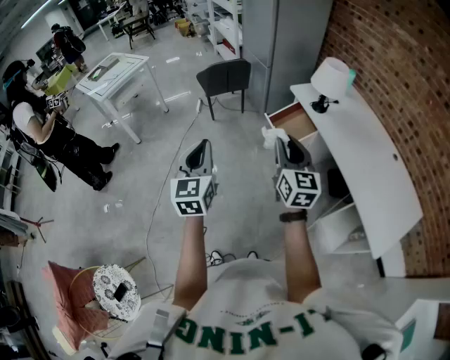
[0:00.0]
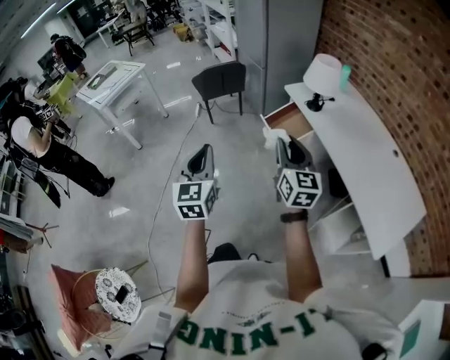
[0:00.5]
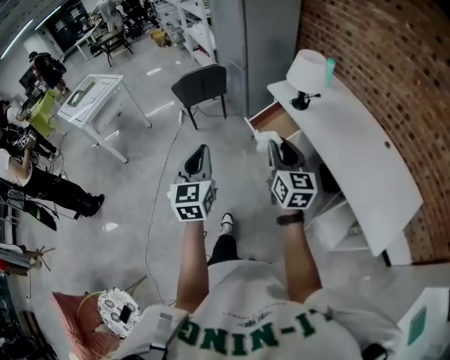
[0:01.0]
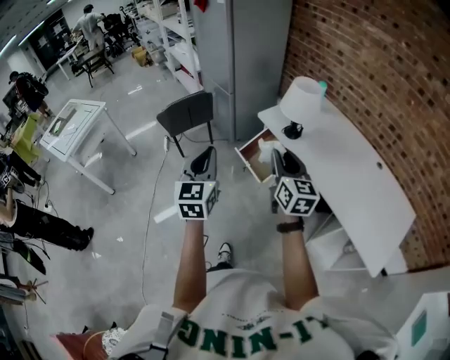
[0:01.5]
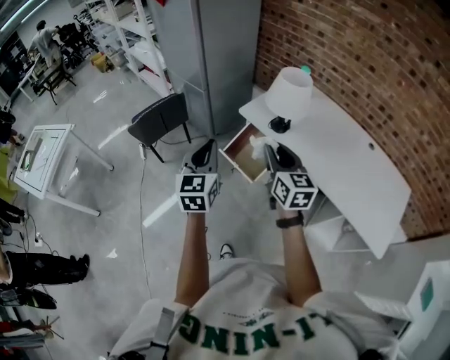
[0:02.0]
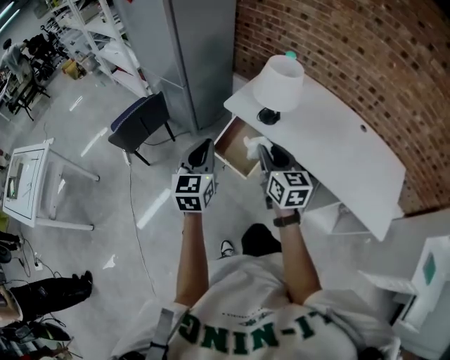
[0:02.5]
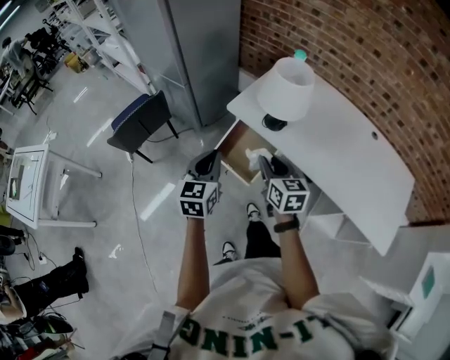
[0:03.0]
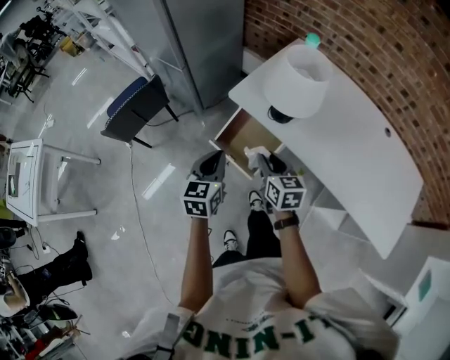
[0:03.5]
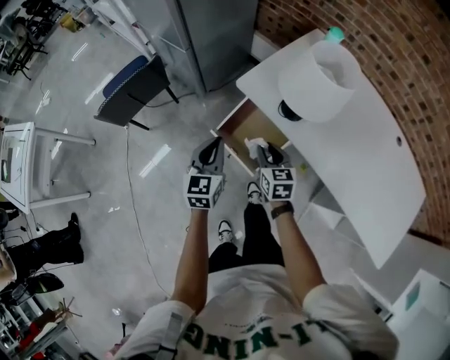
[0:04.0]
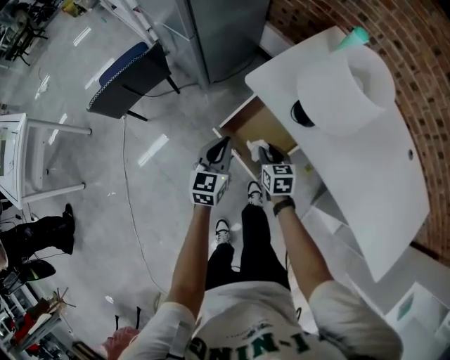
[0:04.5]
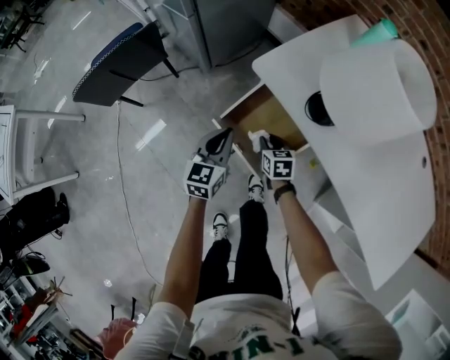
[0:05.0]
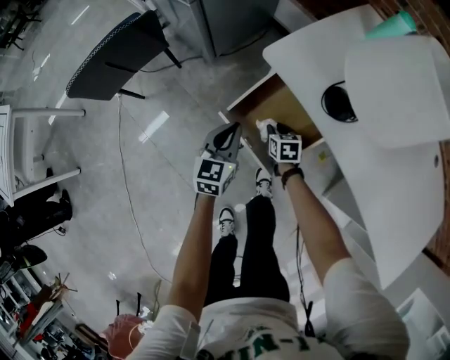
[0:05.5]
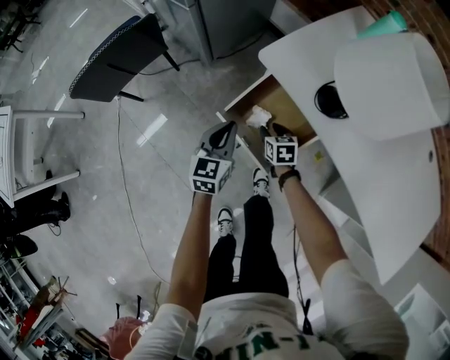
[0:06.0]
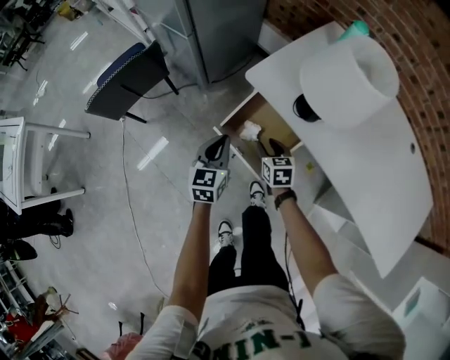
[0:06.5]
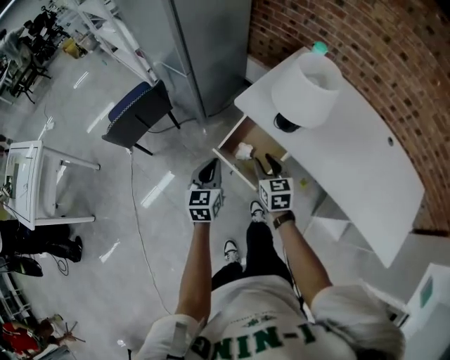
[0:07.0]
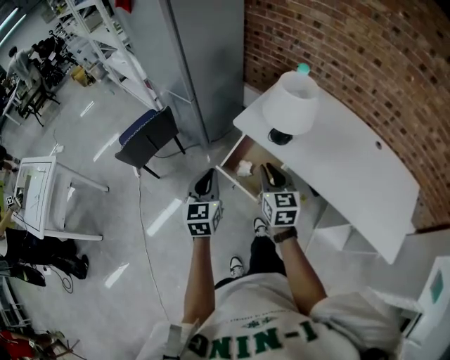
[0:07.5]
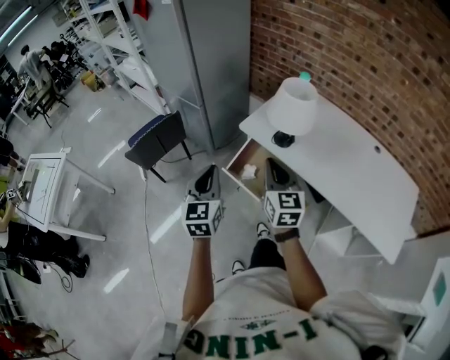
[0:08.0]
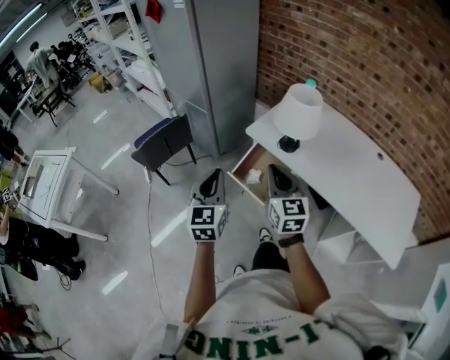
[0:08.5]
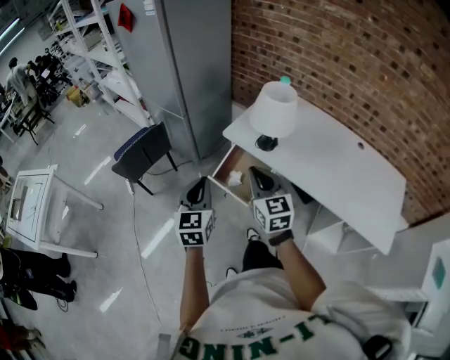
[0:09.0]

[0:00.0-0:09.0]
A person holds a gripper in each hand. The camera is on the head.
0:00.0 to 0:02.0: Both grippers travel together forward, roughly 35 cm. The left gripper swivels roughly 30 degrees.
0:02.0 to 0:04.5: The two grippers go roughly 40 cm downward and forward. The right gripper tips its fingers downward by approximately 30 degrees.
0:04.5 to 0:07.0: The left gripper shifts about 15 cm upward and backward. Meanwhile the right gripper is displaced upward by roughly 20 cm.
0:07.0 to 0:09.0: The two grippers go approximately 20 cm upward and backward. The right gripper swivels roughly 20 degrees, and closes its fingers.

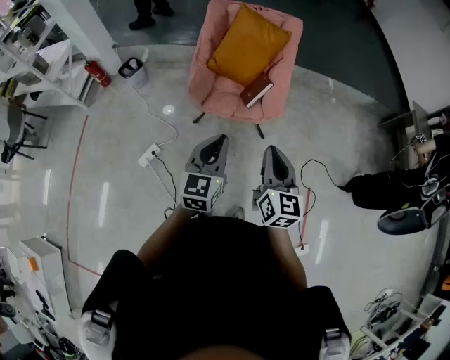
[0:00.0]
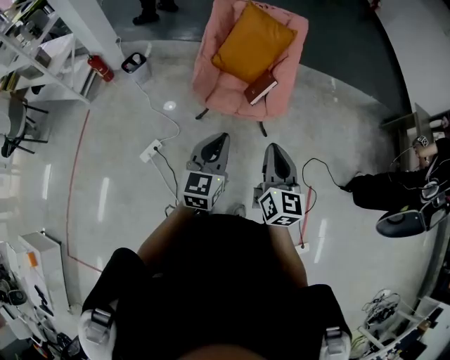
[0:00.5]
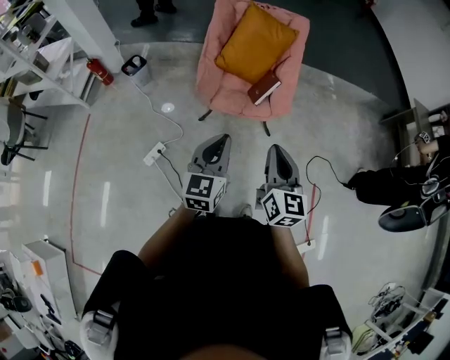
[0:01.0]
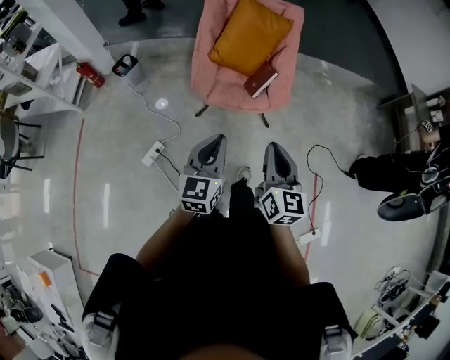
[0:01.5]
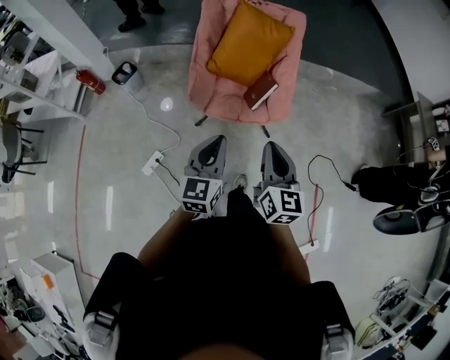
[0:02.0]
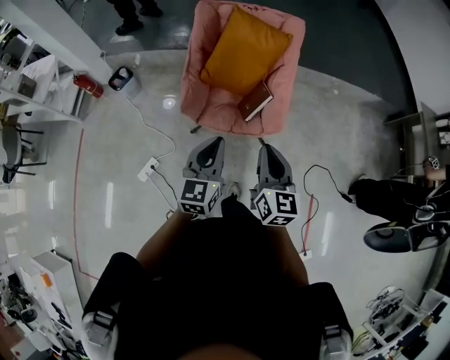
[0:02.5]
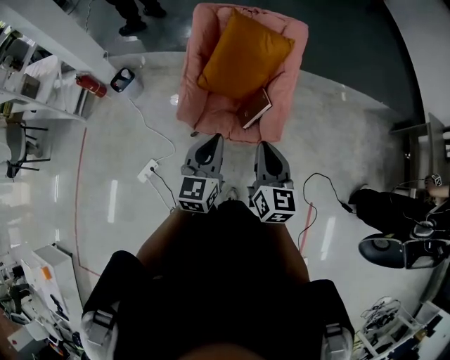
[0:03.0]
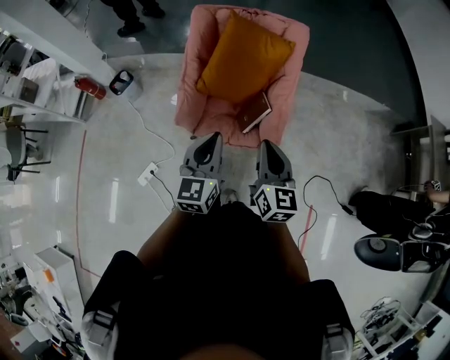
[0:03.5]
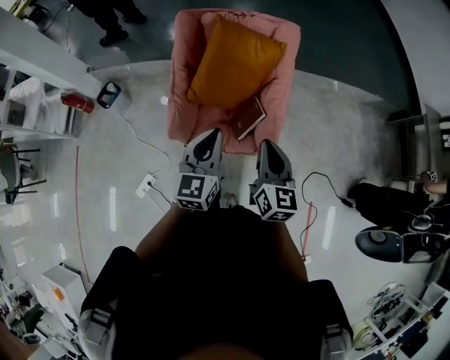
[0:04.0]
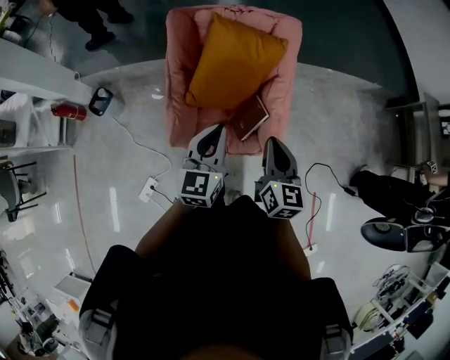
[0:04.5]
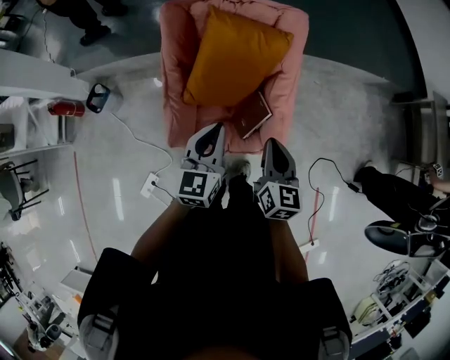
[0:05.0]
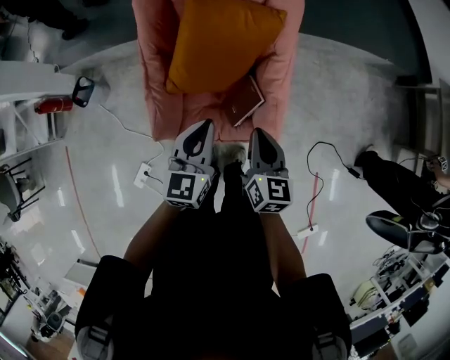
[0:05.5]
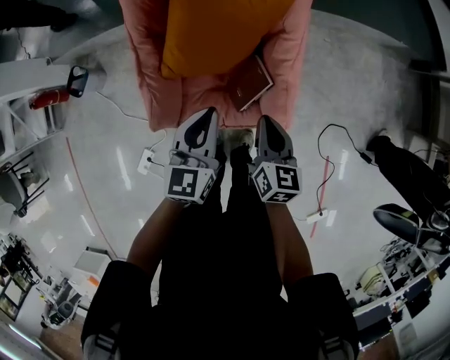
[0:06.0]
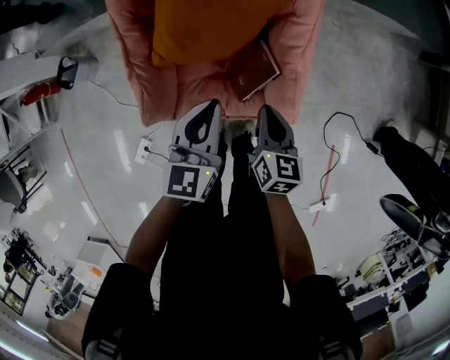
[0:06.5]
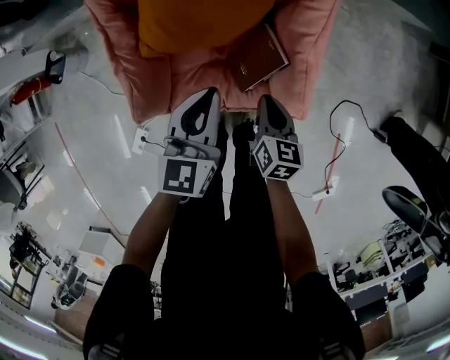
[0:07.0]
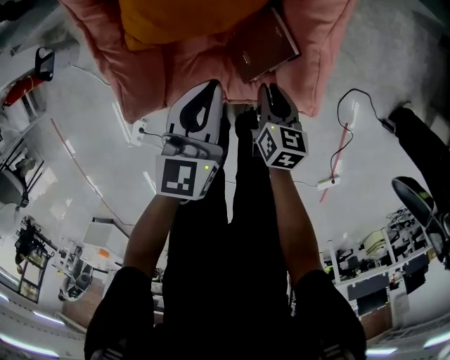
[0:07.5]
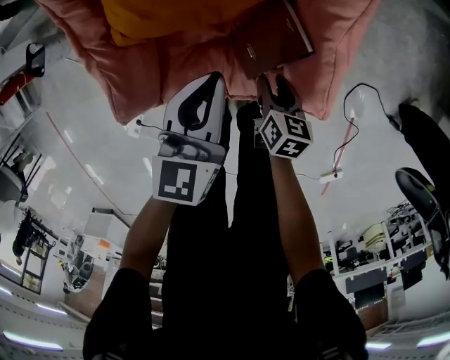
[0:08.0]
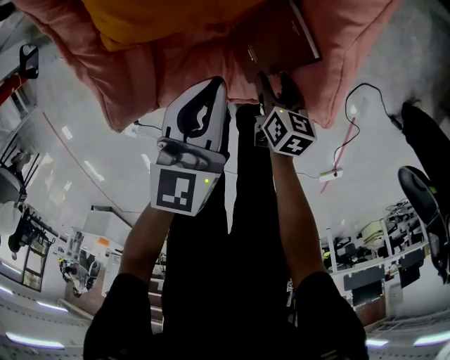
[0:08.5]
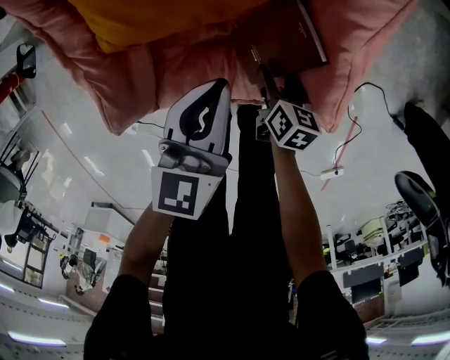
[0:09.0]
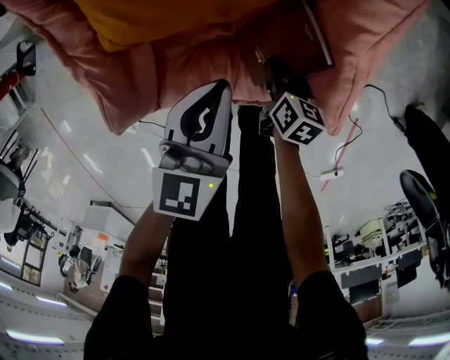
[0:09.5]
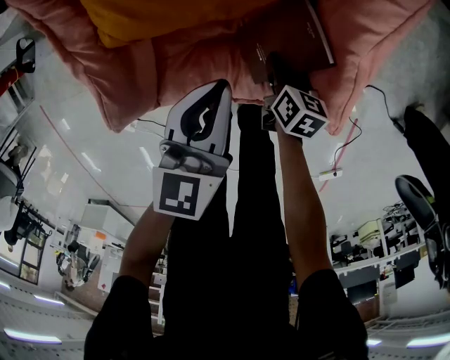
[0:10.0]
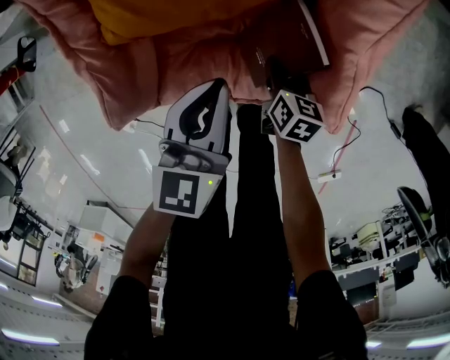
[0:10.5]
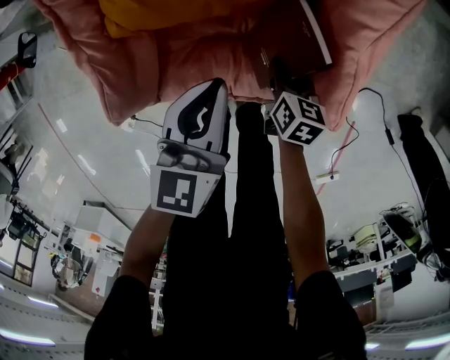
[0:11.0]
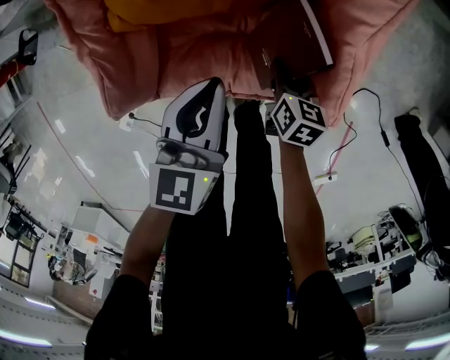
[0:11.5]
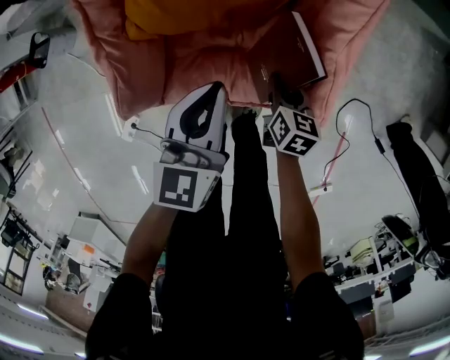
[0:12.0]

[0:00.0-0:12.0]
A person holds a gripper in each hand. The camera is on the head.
0:00.0 to 0:02.0: The grippers both shift forward and to the left by approximately 10 cm.
0:02.0 to 0:04.0: The two grippers go about 30 cm forward.
0:04.0 to 0:06.0: Both grippers travel together downward and forward, roughly 25 cm.
0:06.0 to 0:08.0: The left gripper heads downward, covering some 20 cm, while the right gripper heads downward, covering about 35 cm, rotates approximately 20 degrees, and opens.
0:08.0 to 0:10.0: Both grippers move downward, some 5 cm. The right gripper opens, then closes once more.
0:10.0 to 0:12.0: The grippers both shift upward by about 10 cm.

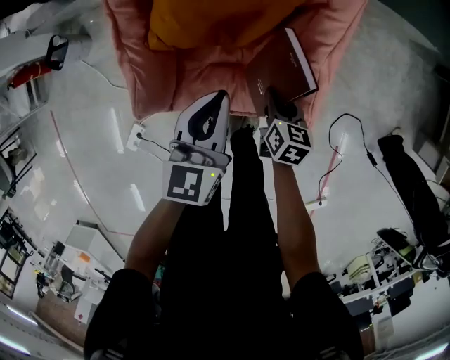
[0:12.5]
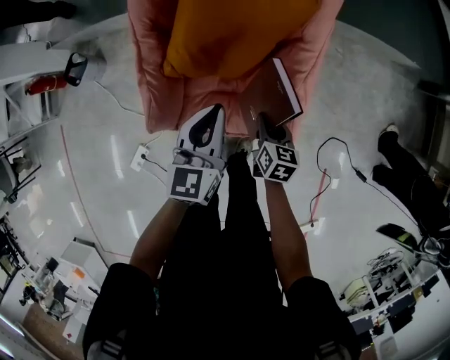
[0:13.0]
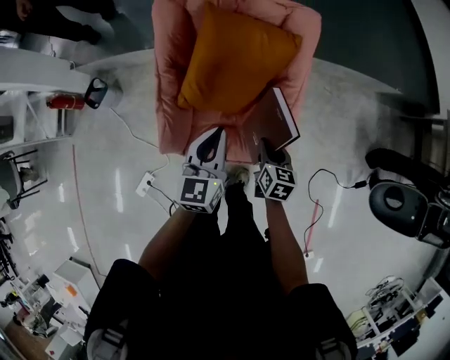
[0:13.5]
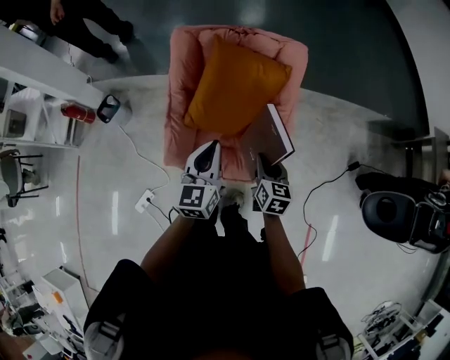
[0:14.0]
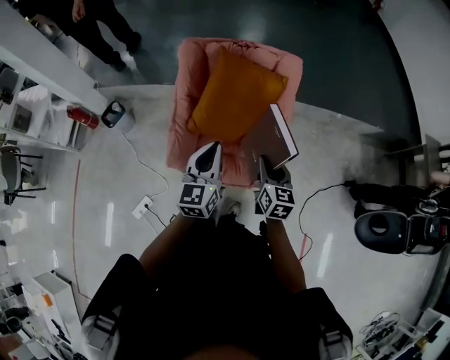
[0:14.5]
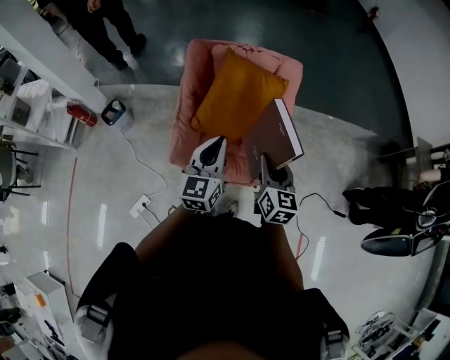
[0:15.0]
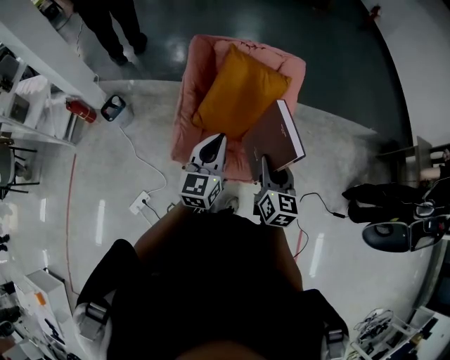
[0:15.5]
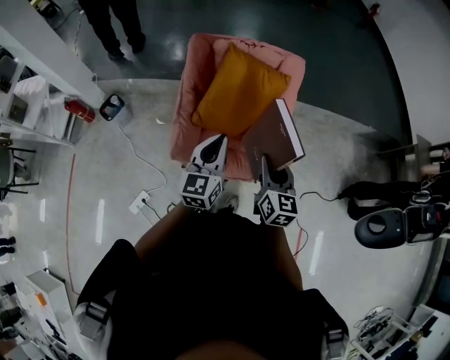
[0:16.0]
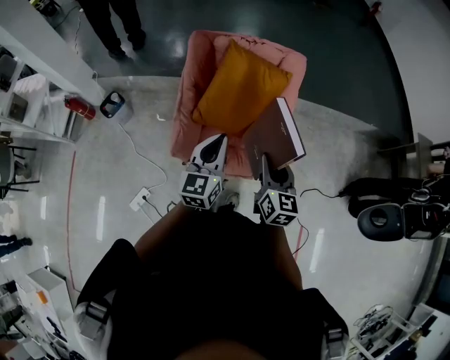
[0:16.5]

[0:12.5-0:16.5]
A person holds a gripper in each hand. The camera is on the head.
0:12.5 to 0:14.5: Both grippers travel together upward, approximately 35 cm. The right gripper rotates roughly 30 degrees.
0:14.5 to 0:16.5: The right gripper heads upward and backward, covering approximately 10 cm.

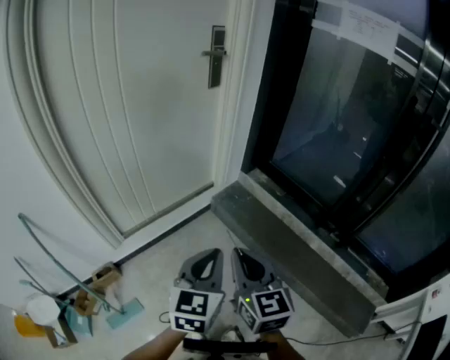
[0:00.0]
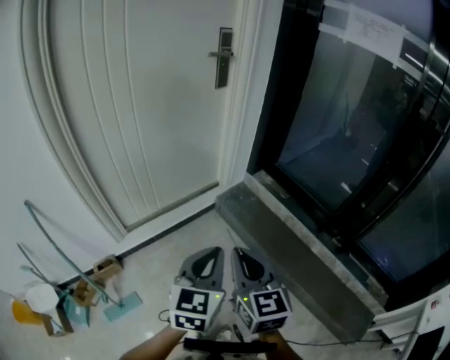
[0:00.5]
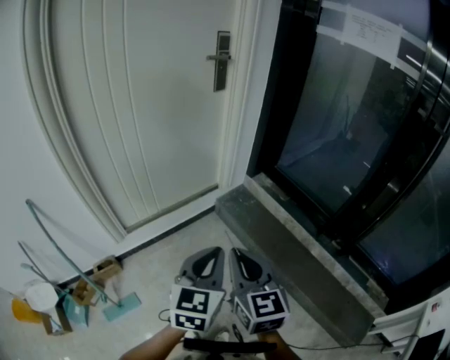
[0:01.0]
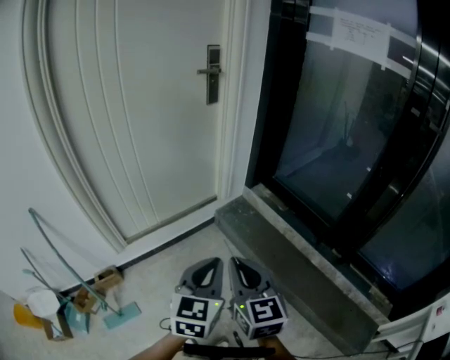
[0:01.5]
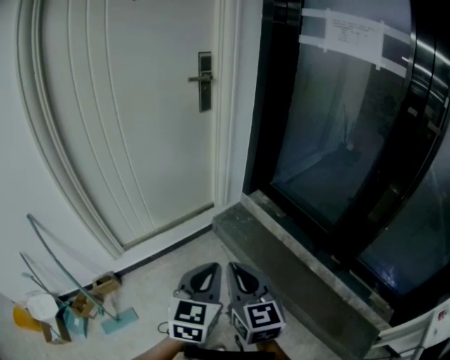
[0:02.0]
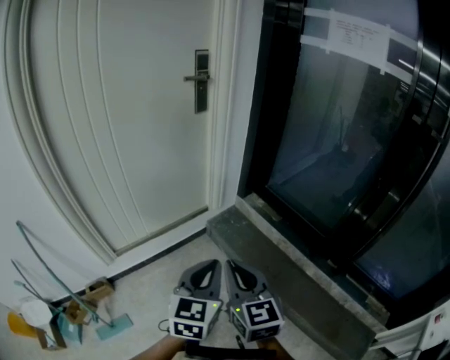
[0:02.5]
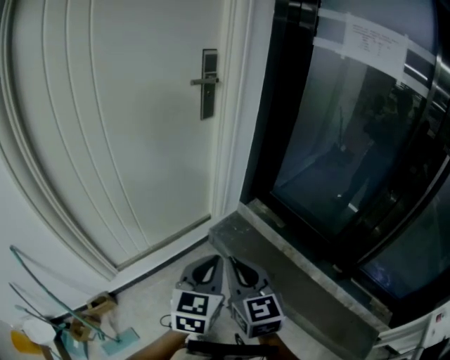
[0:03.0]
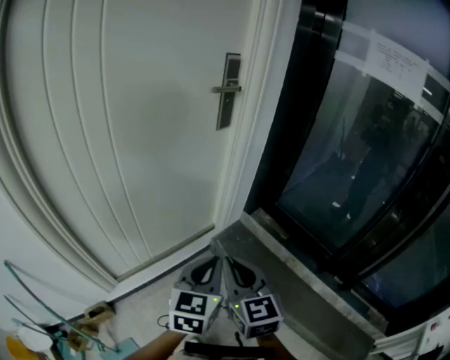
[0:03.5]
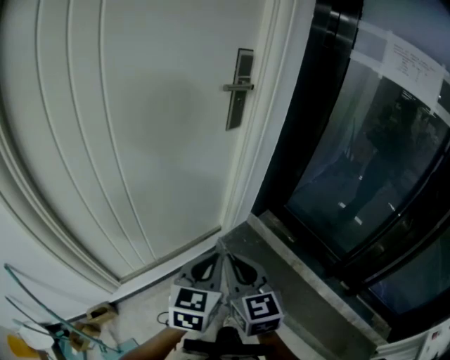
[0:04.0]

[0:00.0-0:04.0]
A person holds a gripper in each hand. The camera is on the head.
0:00.0 to 0:02.0: The grippers both shift to the right by approximately 10 cm.
0:02.0 to 0:04.0: The grippers both shift forward and to the left by approximately 35 cm.
